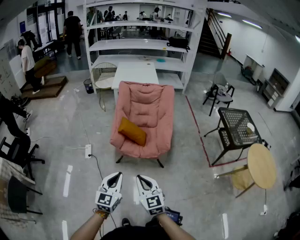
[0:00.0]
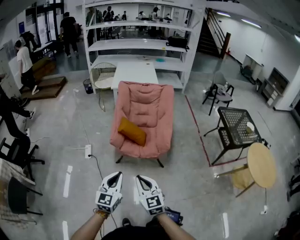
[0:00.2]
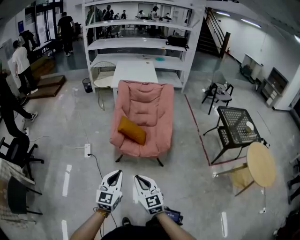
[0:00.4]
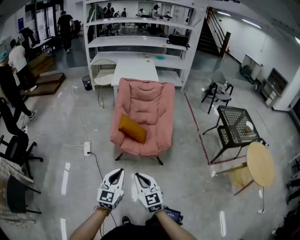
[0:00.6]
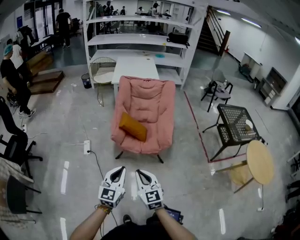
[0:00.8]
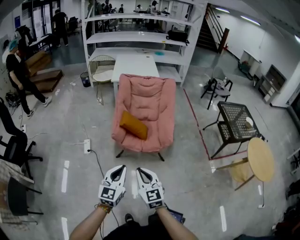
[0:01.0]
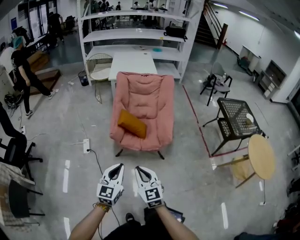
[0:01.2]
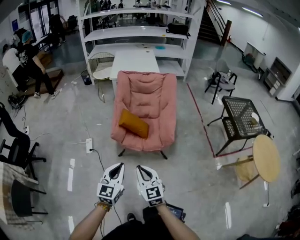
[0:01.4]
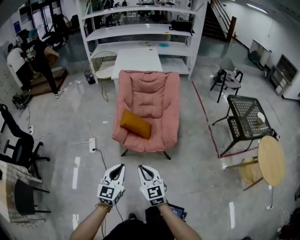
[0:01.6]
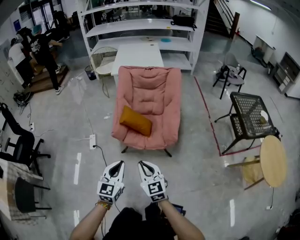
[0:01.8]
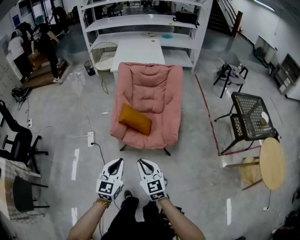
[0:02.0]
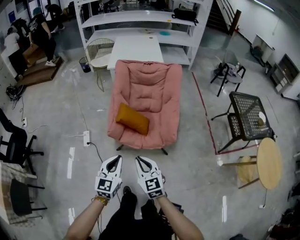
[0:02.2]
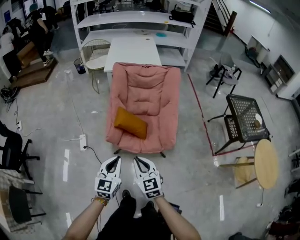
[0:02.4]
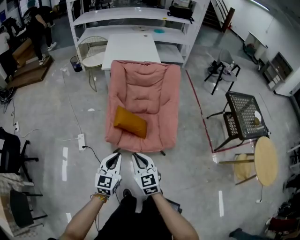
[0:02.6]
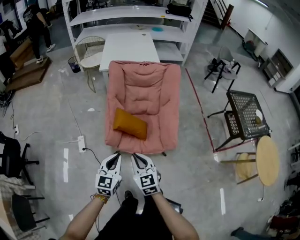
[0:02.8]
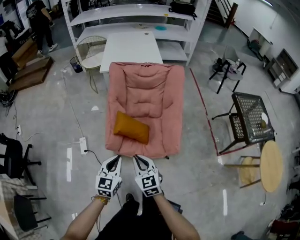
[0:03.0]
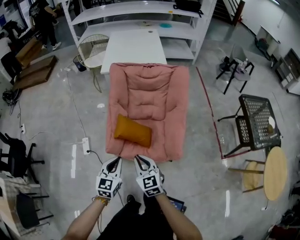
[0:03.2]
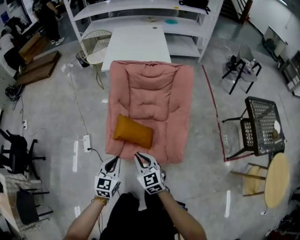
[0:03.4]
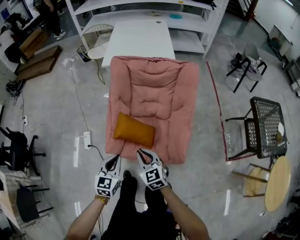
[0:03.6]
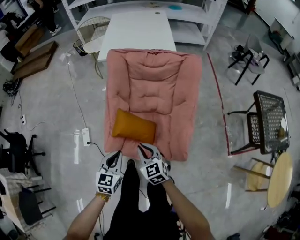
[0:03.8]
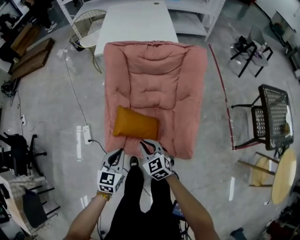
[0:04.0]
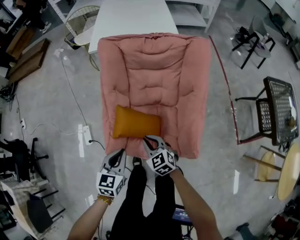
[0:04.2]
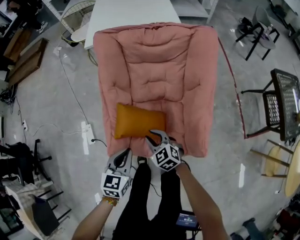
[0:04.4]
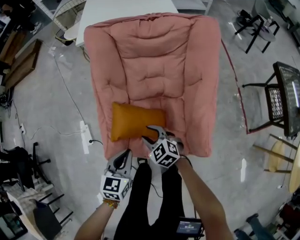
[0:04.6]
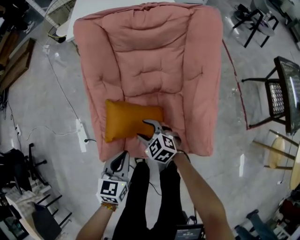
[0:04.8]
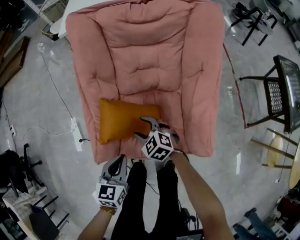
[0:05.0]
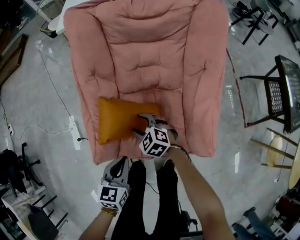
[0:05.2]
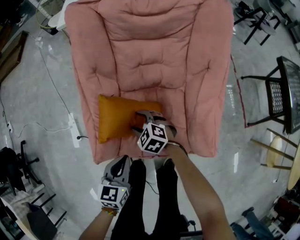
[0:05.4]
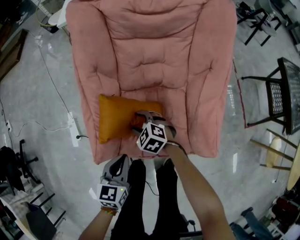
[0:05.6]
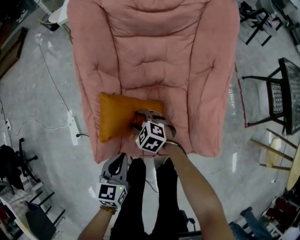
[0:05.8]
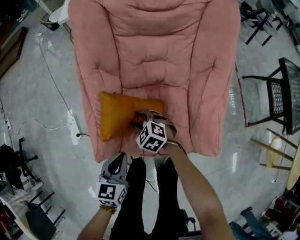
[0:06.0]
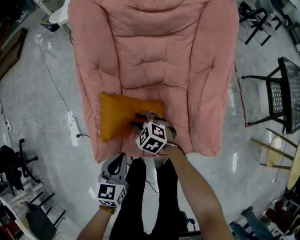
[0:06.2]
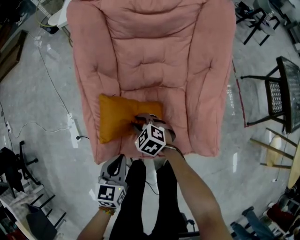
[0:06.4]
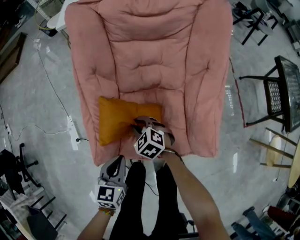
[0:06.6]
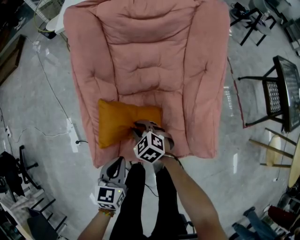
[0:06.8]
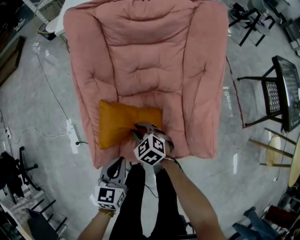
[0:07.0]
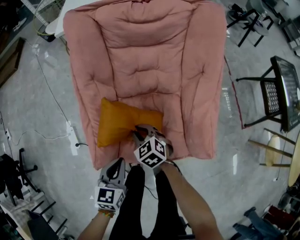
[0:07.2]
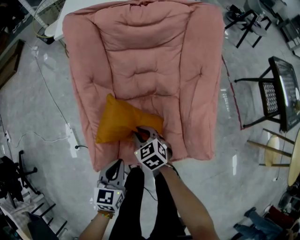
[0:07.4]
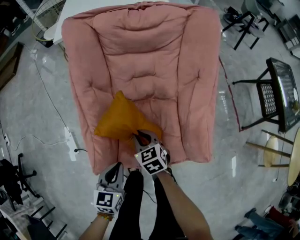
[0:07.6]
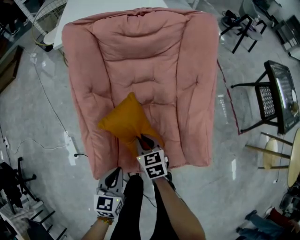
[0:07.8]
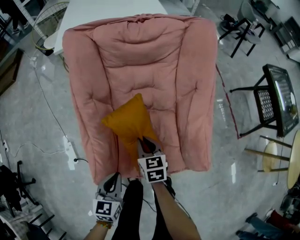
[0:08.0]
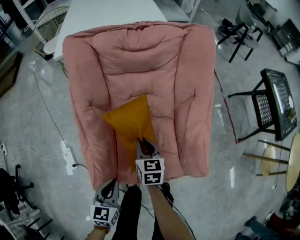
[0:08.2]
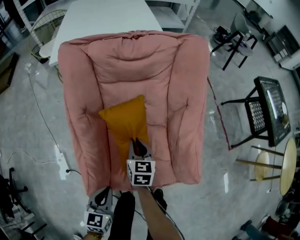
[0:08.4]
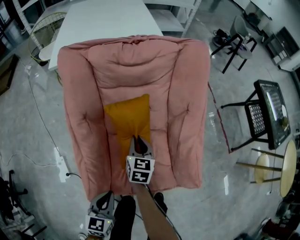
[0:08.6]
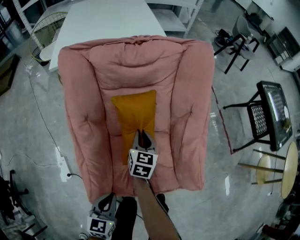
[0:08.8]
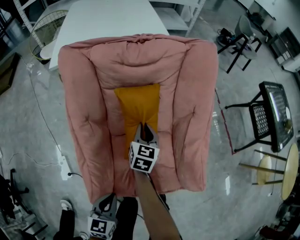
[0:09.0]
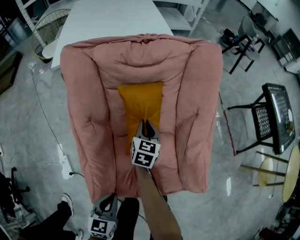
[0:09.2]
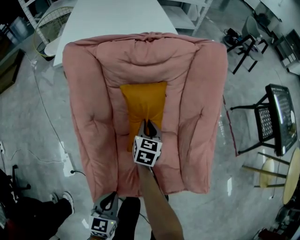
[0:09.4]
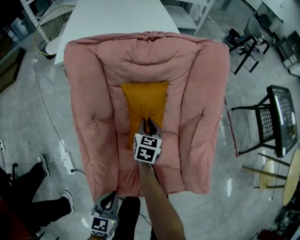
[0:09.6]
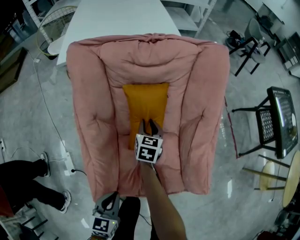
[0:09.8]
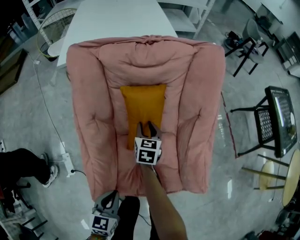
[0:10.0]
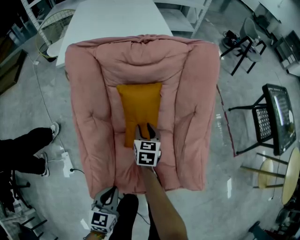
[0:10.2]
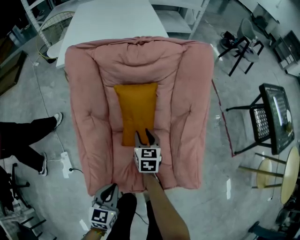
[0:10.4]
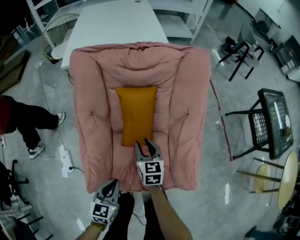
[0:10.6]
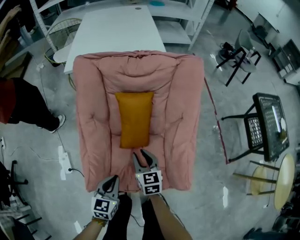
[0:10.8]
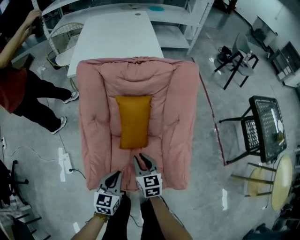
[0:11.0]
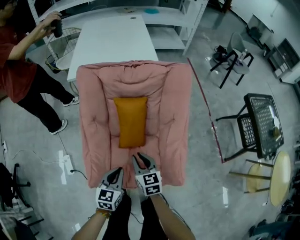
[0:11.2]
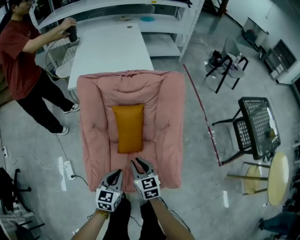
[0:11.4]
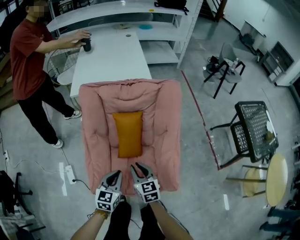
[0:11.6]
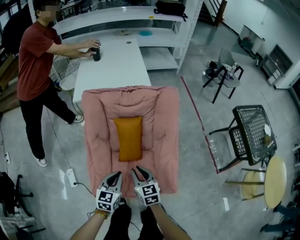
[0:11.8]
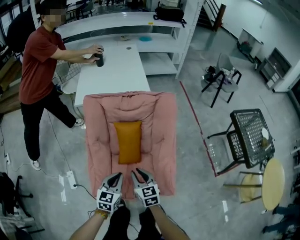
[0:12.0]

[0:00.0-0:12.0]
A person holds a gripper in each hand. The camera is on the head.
0:00.0 to 0:01.6: Both grippers move forward, some 10 cm.
0:01.6 to 0:03.0: Both grippers move forward, roughly 25 cm.
0:03.0 to 0:04.4: The right gripper shifts roughly 40 cm downward and forward, and swivels about 30 degrees; the left gripper travels forward and downward by roughly 30 cm.
0:04.4 to 0:06.0: The two grippers go approximately 15 cm downward. The right gripper opens.
0:06.0 to 0:07.6: The right gripper travels upward by roughly 5 cm, rotates some 40 degrees, and closes up.
0:07.6 to 0:09.0: The right gripper shifts roughly 20 cm forward, and changes its angle by approximately 40 degrees.
0:09.0 to 0:10.4: The right gripper shifts about 5 cm backward, and opens its fingers.
0:10.4 to 0:12.0: The left gripper moves upward, about 20 cm; the right gripper travels upward and backward by about 30 cm.

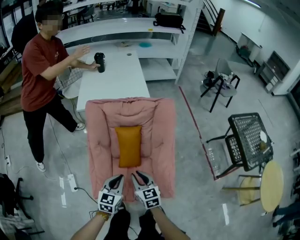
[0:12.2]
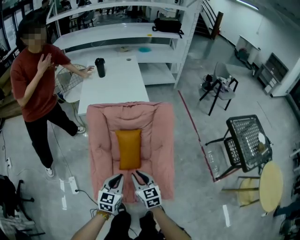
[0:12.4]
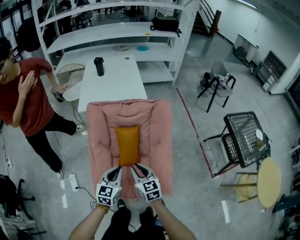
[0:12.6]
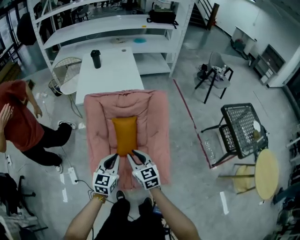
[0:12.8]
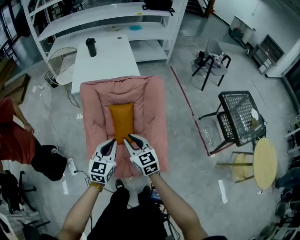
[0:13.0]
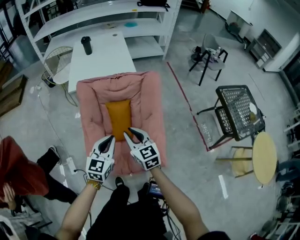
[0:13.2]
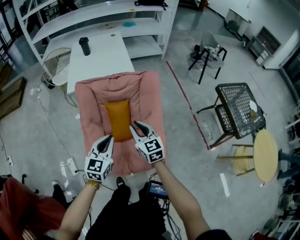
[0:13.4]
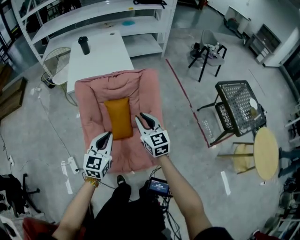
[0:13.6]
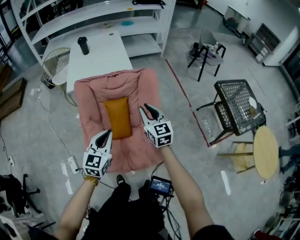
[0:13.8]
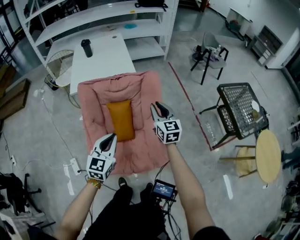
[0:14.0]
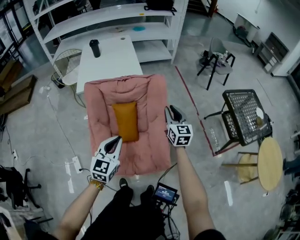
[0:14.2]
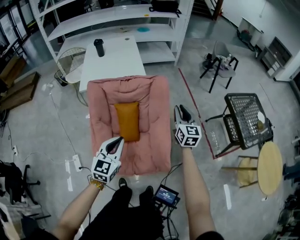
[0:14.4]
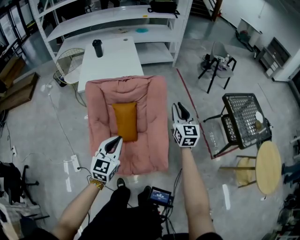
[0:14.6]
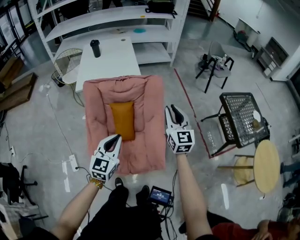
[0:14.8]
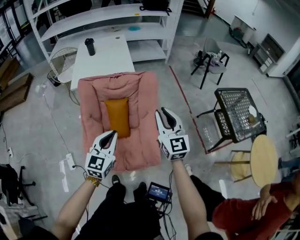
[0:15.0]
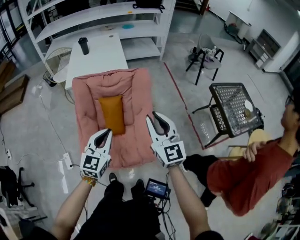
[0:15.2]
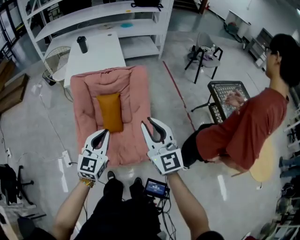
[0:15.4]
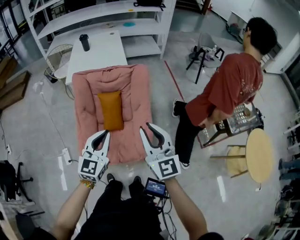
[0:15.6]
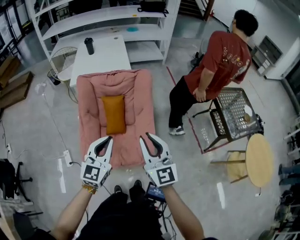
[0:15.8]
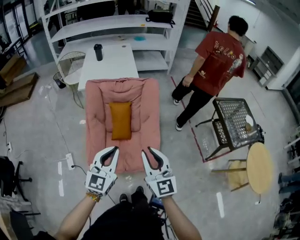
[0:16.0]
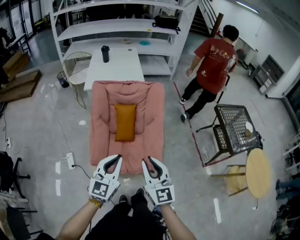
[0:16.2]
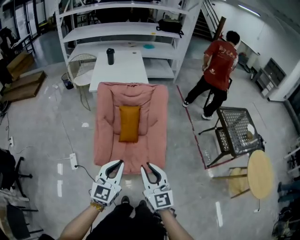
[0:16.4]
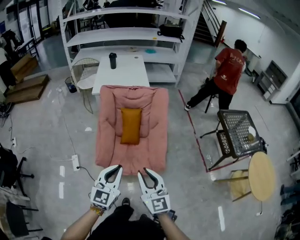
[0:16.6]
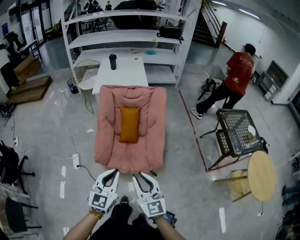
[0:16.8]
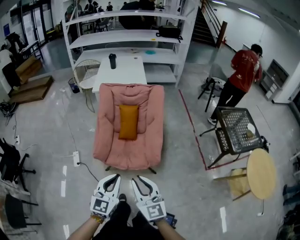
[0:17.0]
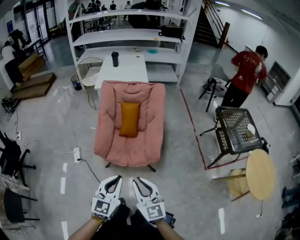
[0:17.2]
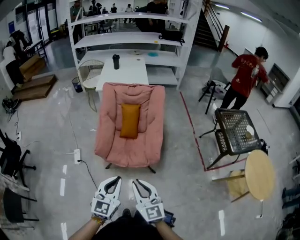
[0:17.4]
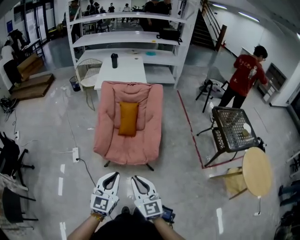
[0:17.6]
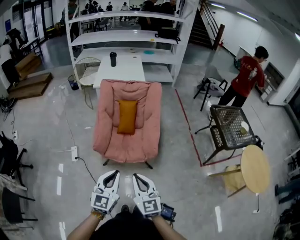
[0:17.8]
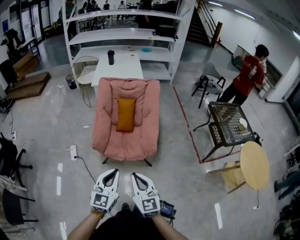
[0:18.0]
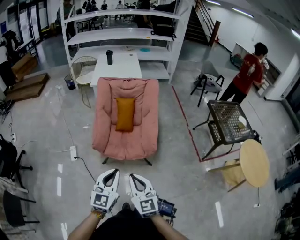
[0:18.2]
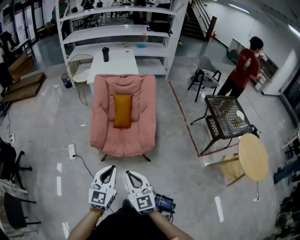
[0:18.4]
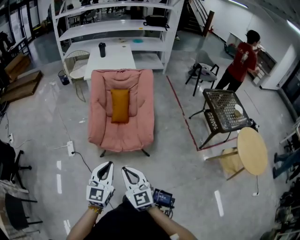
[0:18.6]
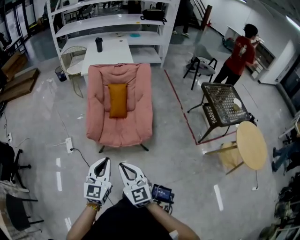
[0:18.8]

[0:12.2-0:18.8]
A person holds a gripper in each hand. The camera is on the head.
0:12.2 to 0:13.8: The right gripper moves upward, to the right and forward, some 25 cm, and rotates some 20 degrees. Meanwhile the left gripper is displaced upward by some 15 cm.
0:13.8 to 0:15.4: The left gripper shifts about 15 cm to the right, backward and upward, while the right gripper goes some 25 cm backward, upward and to the right, and turns by some 20 degrees.
0:15.4 to 0:17.2: The two grippers go roughly 35 cm backward.
0:17.2 to 0:18.8: The left gripper moves to the left, about 5 cm. The right gripper moves to the left and backward, some 10 cm.

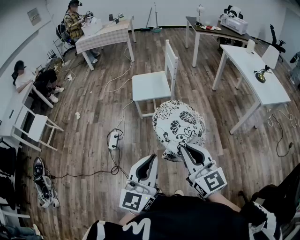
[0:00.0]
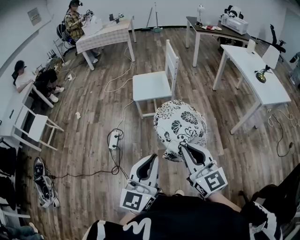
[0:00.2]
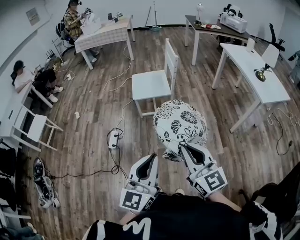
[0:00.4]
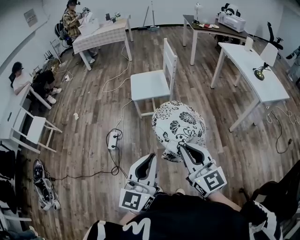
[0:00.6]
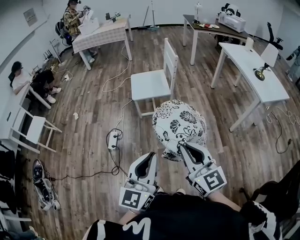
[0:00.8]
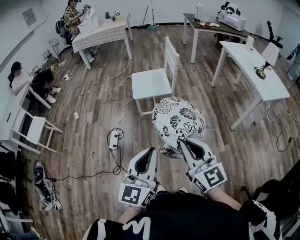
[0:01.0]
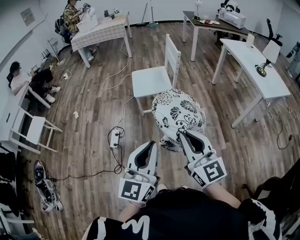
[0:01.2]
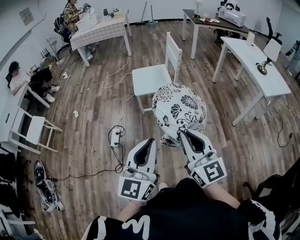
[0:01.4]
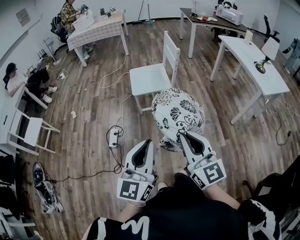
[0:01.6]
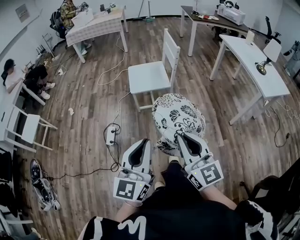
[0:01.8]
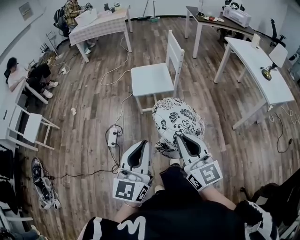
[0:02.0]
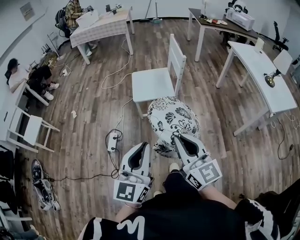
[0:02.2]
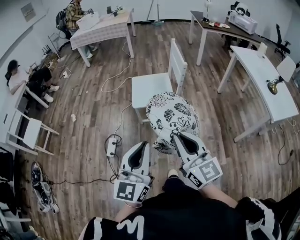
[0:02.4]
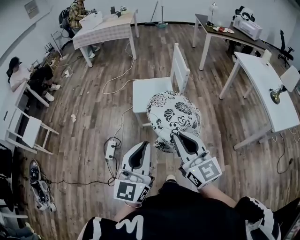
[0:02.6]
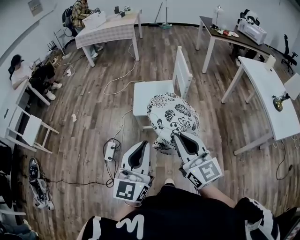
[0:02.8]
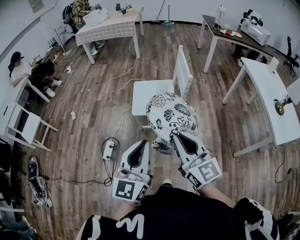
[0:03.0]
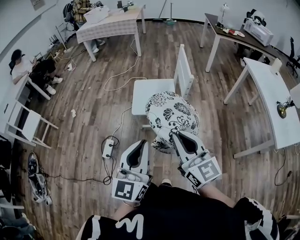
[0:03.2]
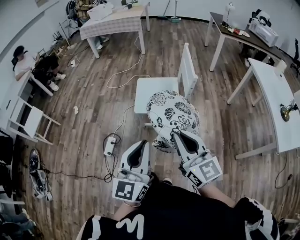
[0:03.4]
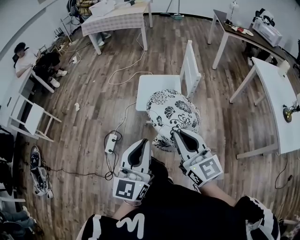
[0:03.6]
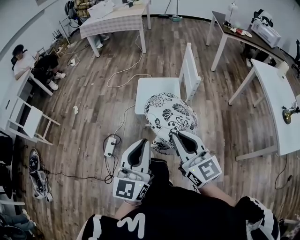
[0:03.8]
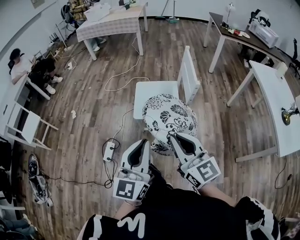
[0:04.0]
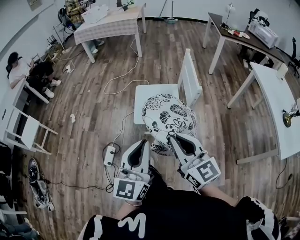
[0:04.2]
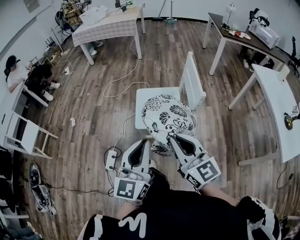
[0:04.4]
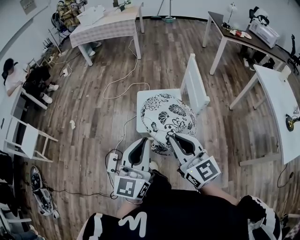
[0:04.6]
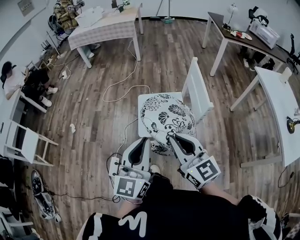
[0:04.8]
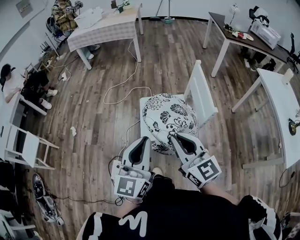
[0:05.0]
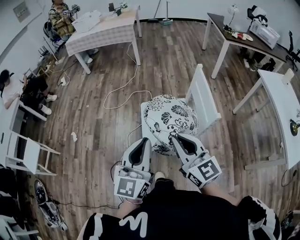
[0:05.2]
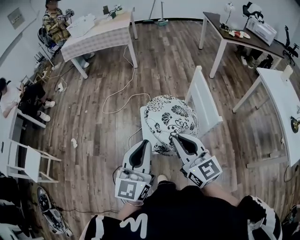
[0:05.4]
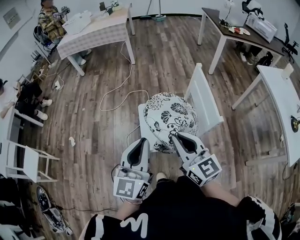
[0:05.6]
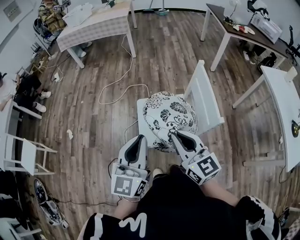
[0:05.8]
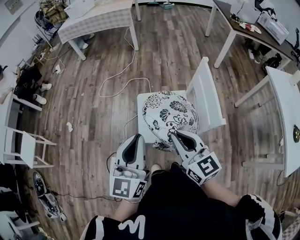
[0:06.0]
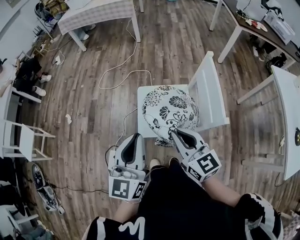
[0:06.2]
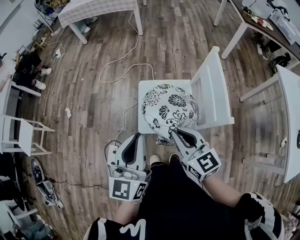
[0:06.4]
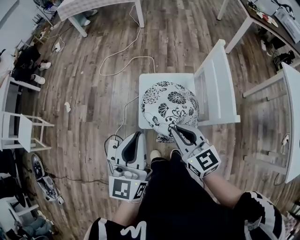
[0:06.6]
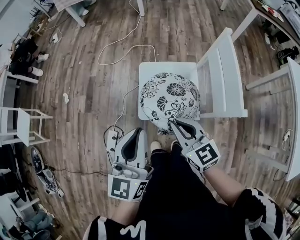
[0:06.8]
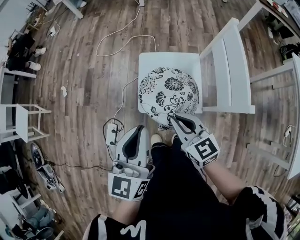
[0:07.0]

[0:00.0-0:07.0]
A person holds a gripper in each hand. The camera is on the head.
0:00.0 to 0:01.4: The left gripper travels to the left and forward by approximately 10 cm. Meanwhile the right gripper heads to the left, covering roughly 5 cm.
0:01.4 to 0:02.8: The two grippers go approximately 25 cm forward.
0:02.8 to 0:04.2: Both grippers travel together forward, approximately 15 cm.
0:04.2 to 0:05.6: Both grippers move forward, some 25 cm.
0:05.6 to 0:07.0: The right gripper moves downward, about 20 cm, and swivels approximately 20 degrees; the left gripper goes approximately 10 cm downward.
